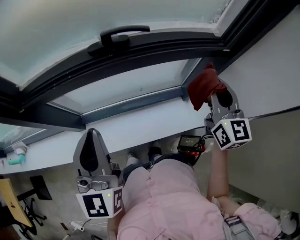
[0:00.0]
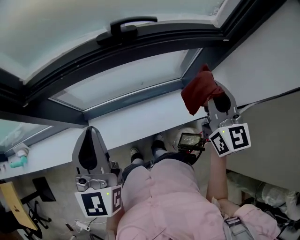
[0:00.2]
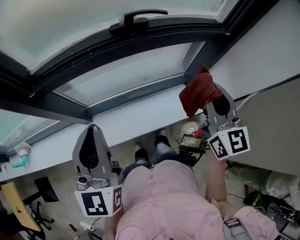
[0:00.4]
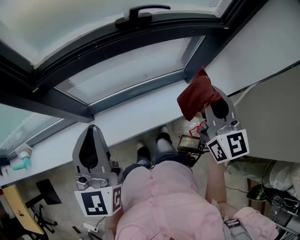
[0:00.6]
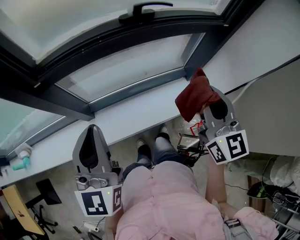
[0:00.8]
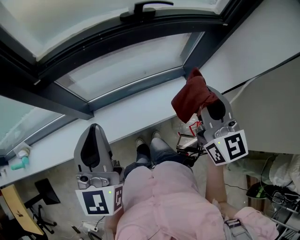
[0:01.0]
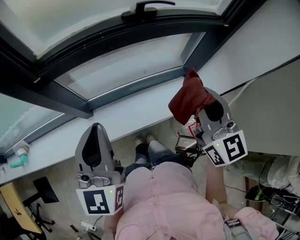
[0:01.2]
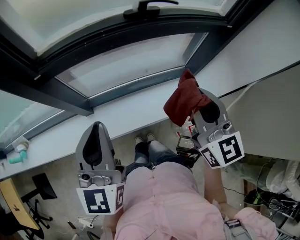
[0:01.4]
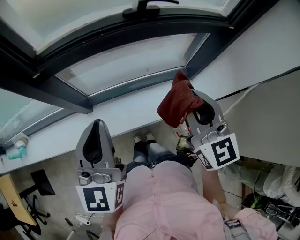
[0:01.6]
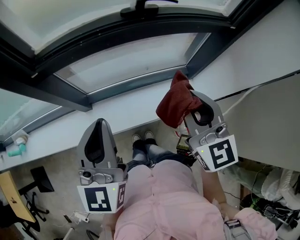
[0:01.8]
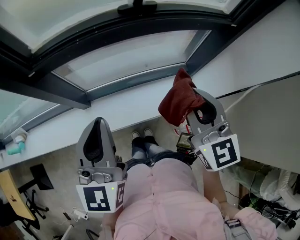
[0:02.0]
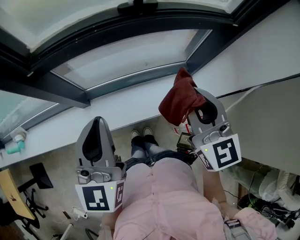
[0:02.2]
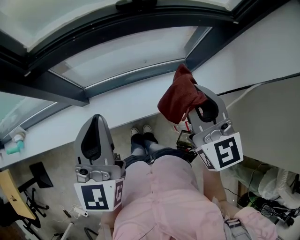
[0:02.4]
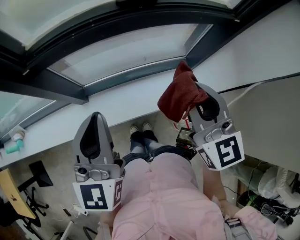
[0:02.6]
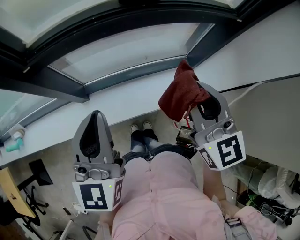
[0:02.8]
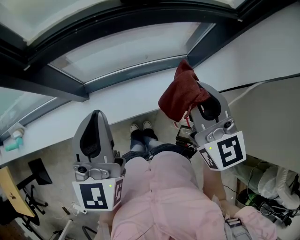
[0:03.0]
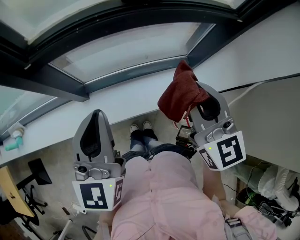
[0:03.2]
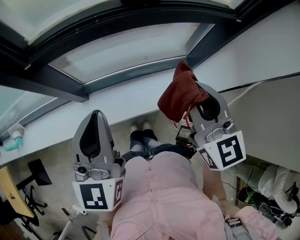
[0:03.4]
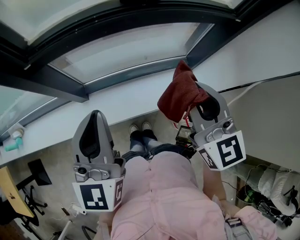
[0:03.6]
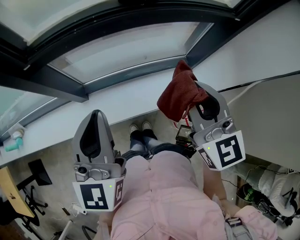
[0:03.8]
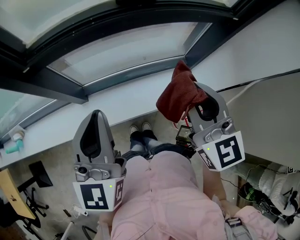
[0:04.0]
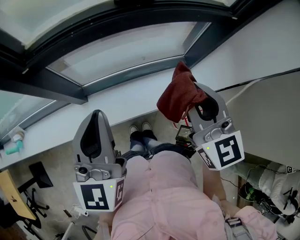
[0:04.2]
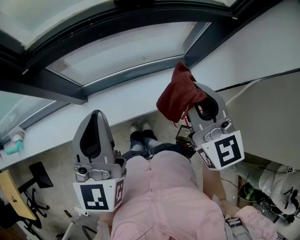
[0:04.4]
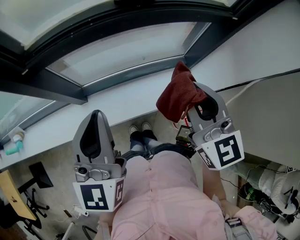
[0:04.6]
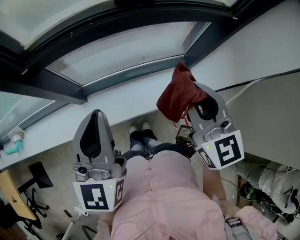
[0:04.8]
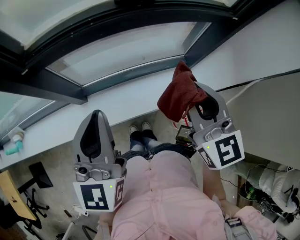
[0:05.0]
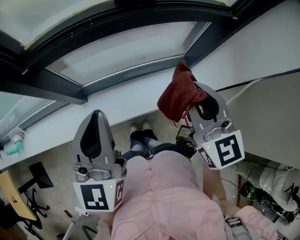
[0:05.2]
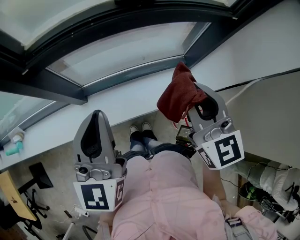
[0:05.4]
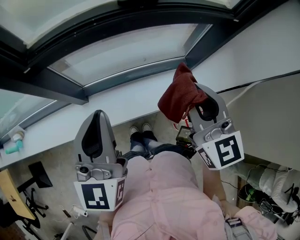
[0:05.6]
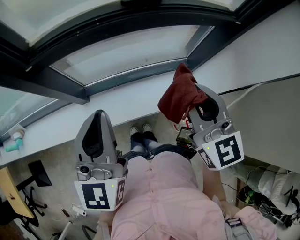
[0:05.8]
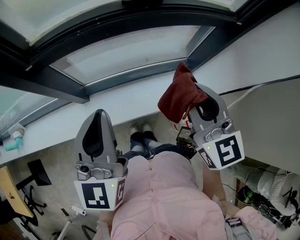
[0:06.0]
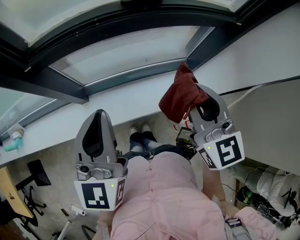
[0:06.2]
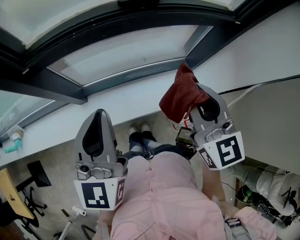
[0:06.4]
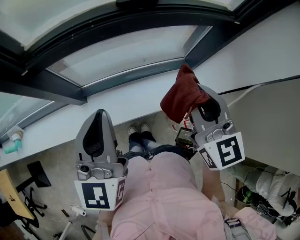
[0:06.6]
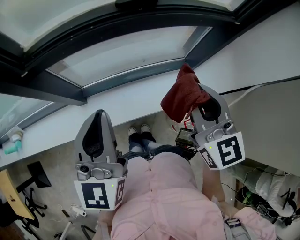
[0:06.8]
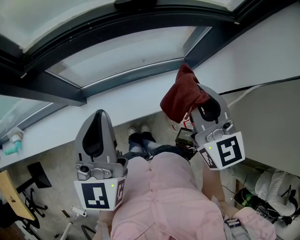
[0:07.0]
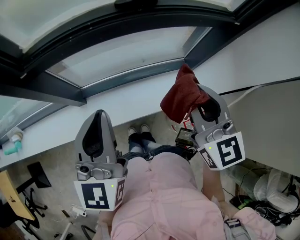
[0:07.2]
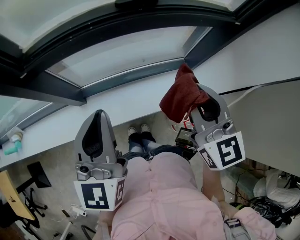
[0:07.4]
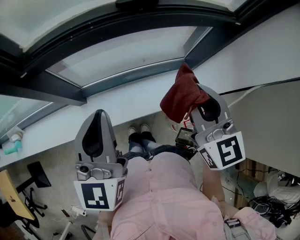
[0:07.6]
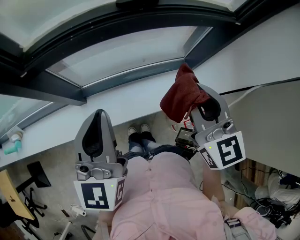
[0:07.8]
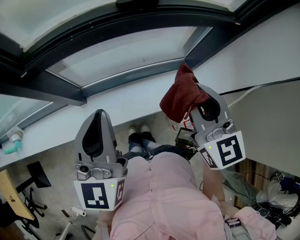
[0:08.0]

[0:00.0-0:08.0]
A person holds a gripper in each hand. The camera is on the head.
0:00.0 to 0:01.6: The left gripper is displaced to the left and backward by roughly 15 cm. Meanwhile the right gripper moves to the left and backward, approximately 30 cm.
0:01.6 to 0:03.2: The grippers move only a little.
0:03.2 to 0:04.8: The two grippers keep their place.
0:04.8 to 0:06.4: The two grippers keep their place.
0:06.4 to 0:08.0: Both grippers stay put.

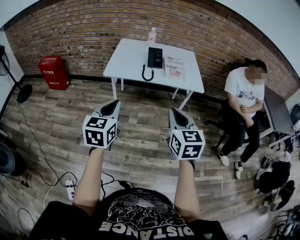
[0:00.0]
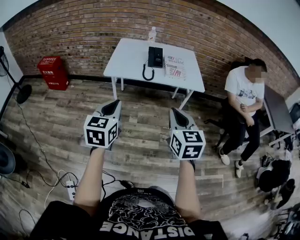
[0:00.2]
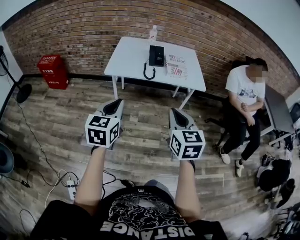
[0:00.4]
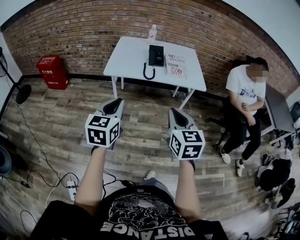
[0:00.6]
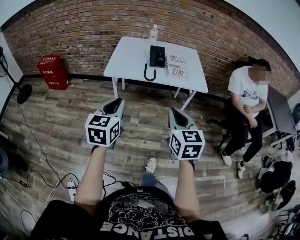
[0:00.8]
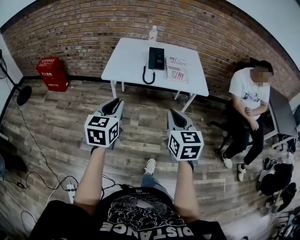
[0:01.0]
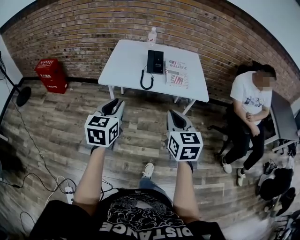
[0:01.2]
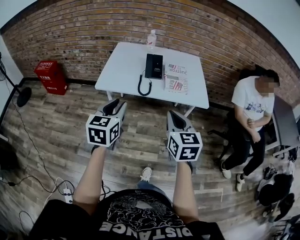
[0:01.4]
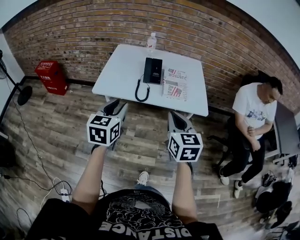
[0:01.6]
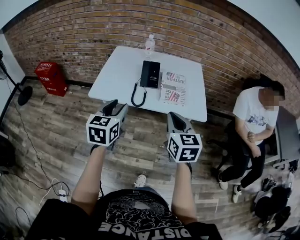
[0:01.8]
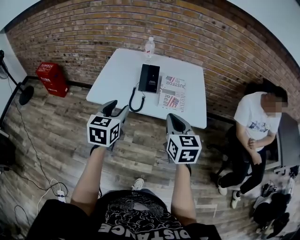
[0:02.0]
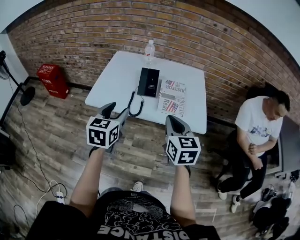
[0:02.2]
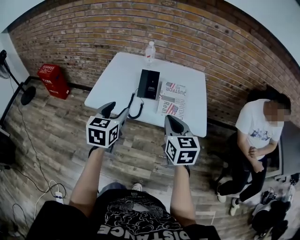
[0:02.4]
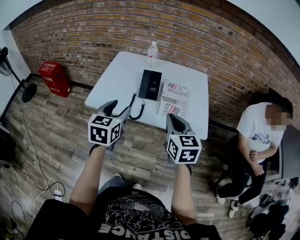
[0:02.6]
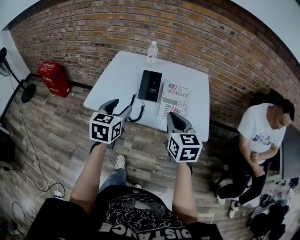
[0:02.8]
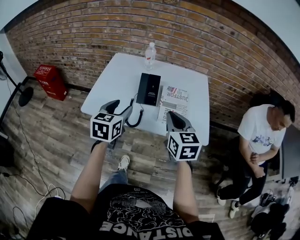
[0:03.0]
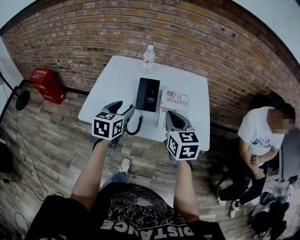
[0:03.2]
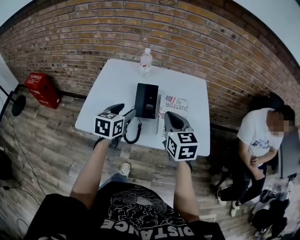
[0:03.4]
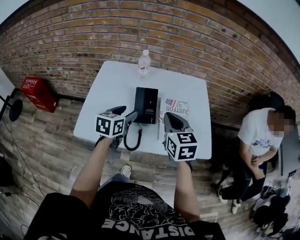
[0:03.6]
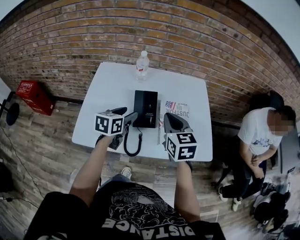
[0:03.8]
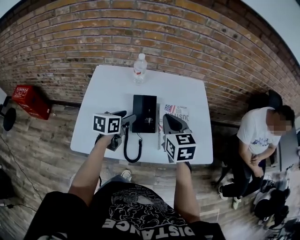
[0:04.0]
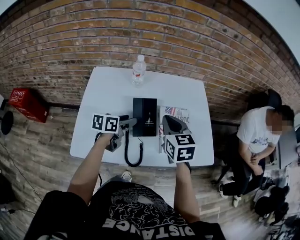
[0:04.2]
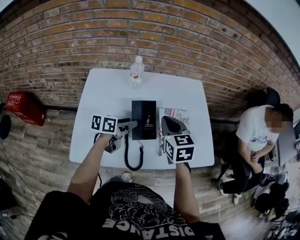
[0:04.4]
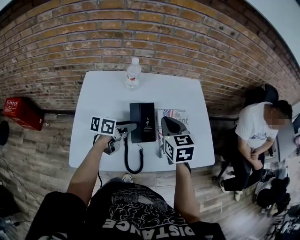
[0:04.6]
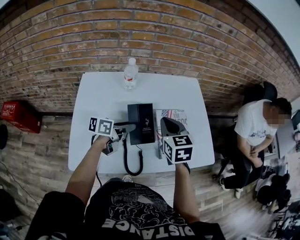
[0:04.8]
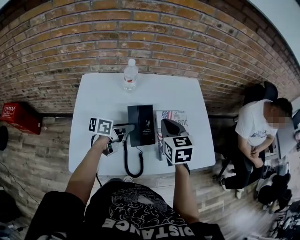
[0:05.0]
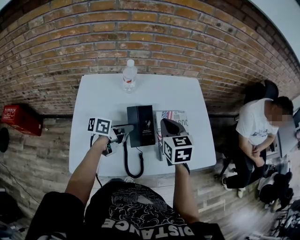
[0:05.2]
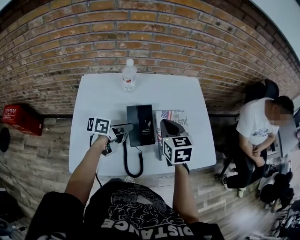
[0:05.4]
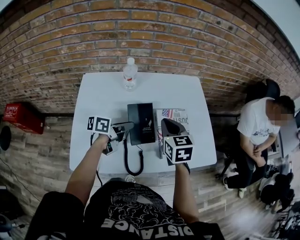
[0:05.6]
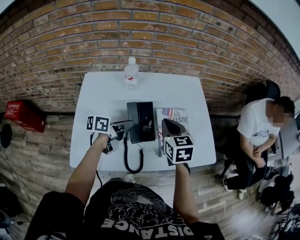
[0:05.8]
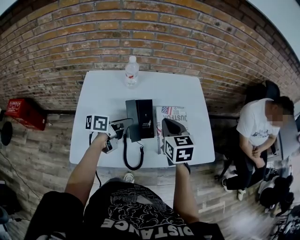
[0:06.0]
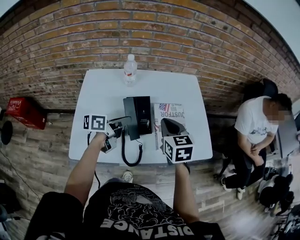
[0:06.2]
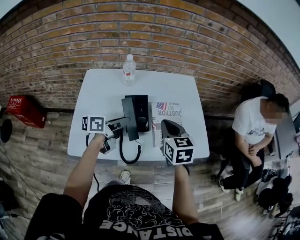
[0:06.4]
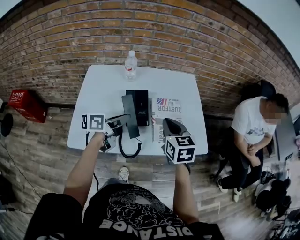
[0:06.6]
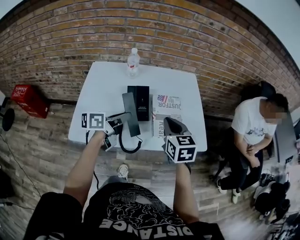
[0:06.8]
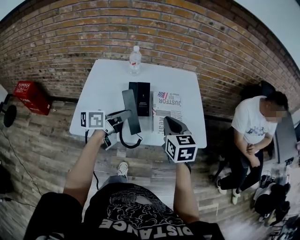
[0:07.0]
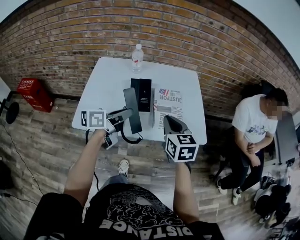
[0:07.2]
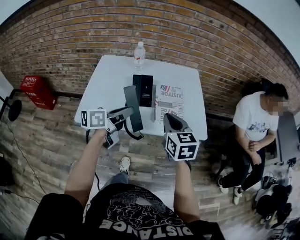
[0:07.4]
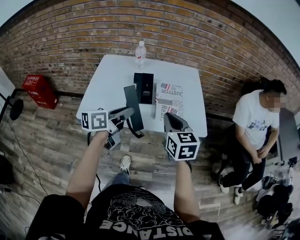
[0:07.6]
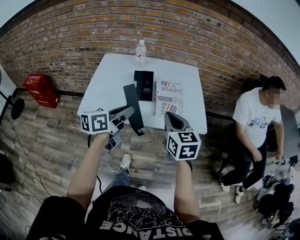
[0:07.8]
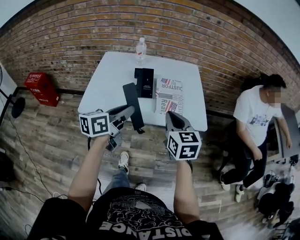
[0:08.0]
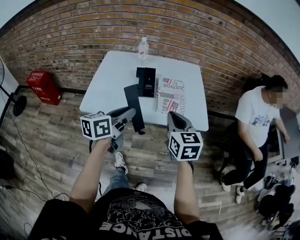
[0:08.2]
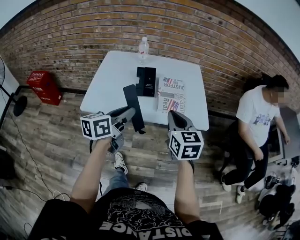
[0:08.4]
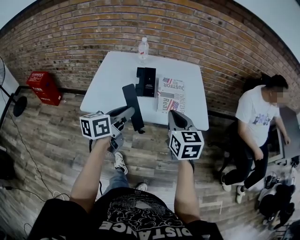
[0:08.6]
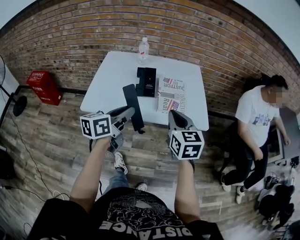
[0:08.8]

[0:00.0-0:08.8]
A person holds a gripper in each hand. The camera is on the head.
0:00.0 to 0:01.4: Both grippers move forward, about 15 cm.
0:01.4 to 0:03.0: The two grippers go about 25 cm forward. The left gripper opens up.
0:03.0 to 0:04.4: The left gripper shifts by some 25 cm, and changes its angle by roughly 50 degrees, while the right gripper changes place by approximately 20 cm.
0:04.4 to 0:05.8: The left gripper closes.
0:05.8 to 0:07.4: The right gripper moves backward and to the right, roughly 20 cm. The left gripper goes about 25 cm backward, upward and to the right, and turns by roughly 20 degrees.
0:07.4 to 0:08.8: The grippers both shift backward by about 5 cm.

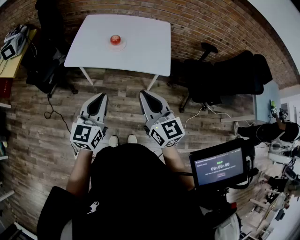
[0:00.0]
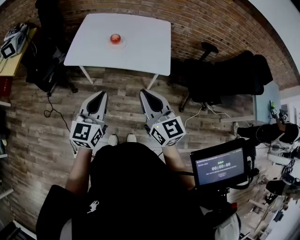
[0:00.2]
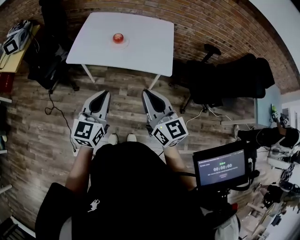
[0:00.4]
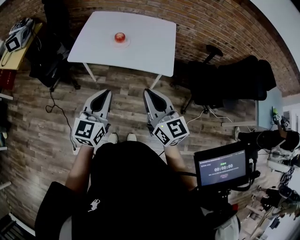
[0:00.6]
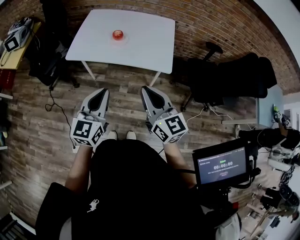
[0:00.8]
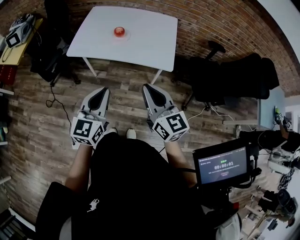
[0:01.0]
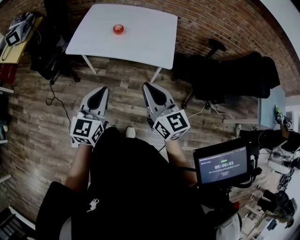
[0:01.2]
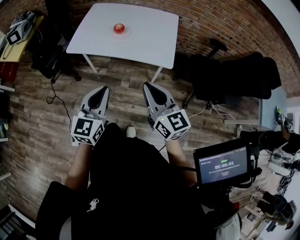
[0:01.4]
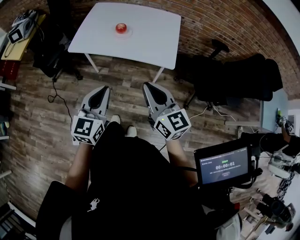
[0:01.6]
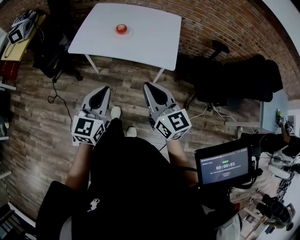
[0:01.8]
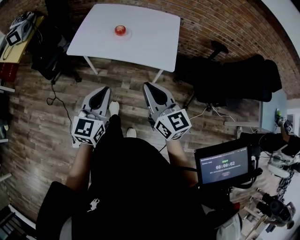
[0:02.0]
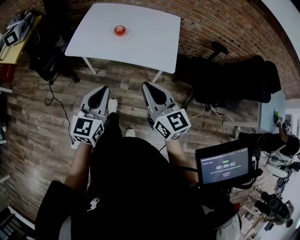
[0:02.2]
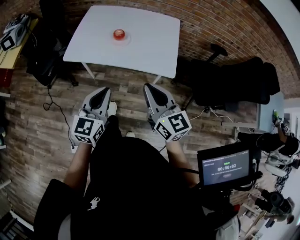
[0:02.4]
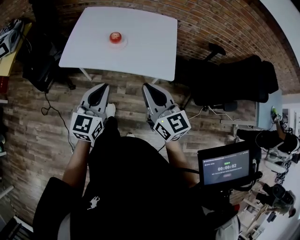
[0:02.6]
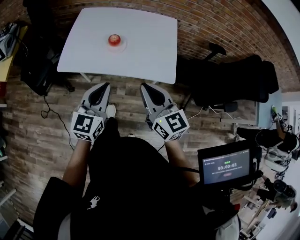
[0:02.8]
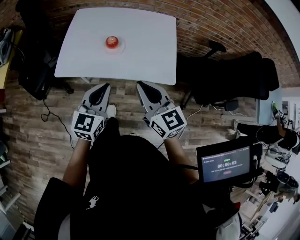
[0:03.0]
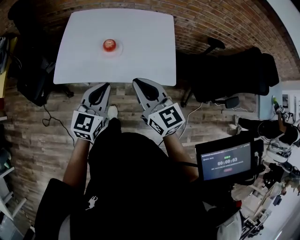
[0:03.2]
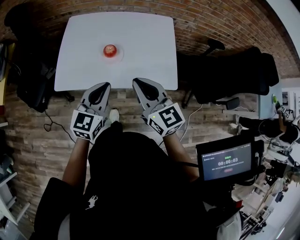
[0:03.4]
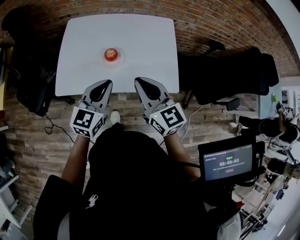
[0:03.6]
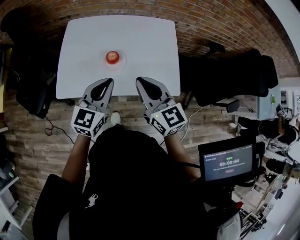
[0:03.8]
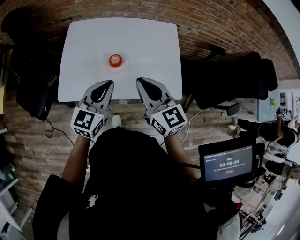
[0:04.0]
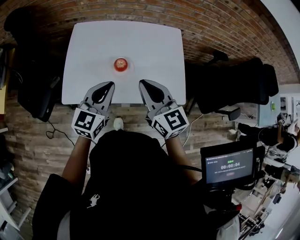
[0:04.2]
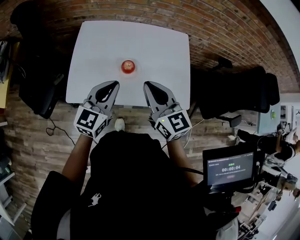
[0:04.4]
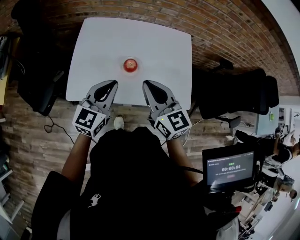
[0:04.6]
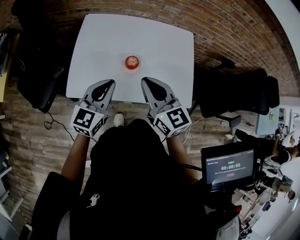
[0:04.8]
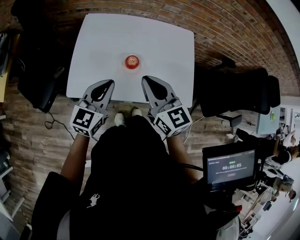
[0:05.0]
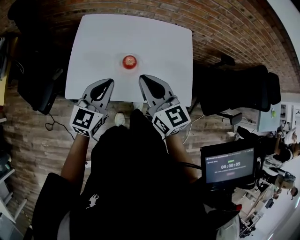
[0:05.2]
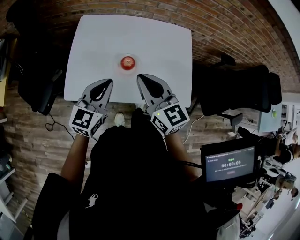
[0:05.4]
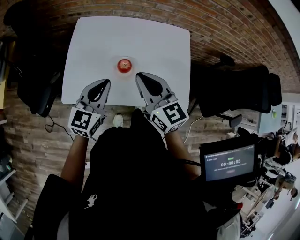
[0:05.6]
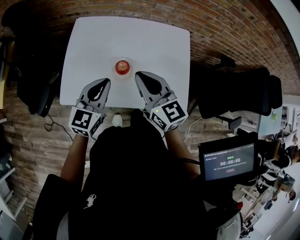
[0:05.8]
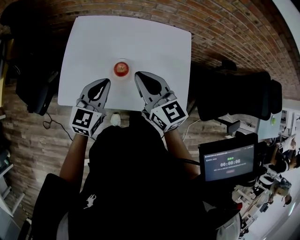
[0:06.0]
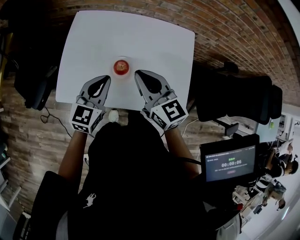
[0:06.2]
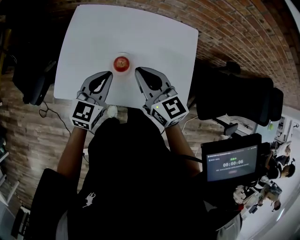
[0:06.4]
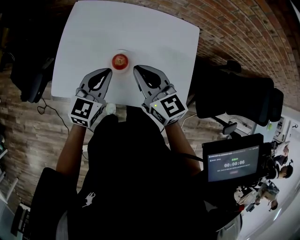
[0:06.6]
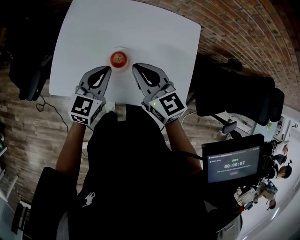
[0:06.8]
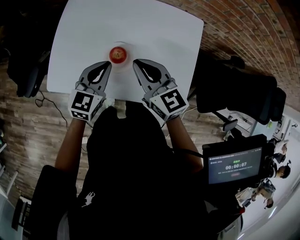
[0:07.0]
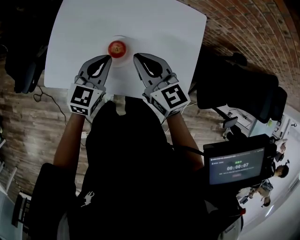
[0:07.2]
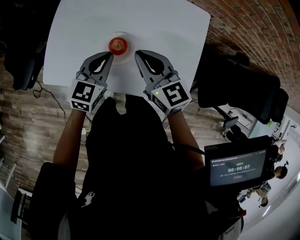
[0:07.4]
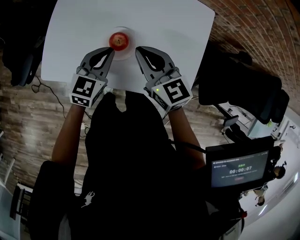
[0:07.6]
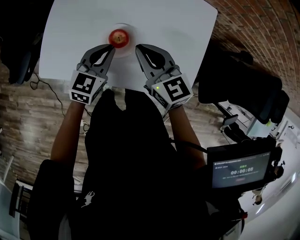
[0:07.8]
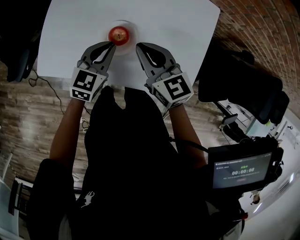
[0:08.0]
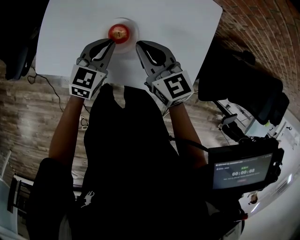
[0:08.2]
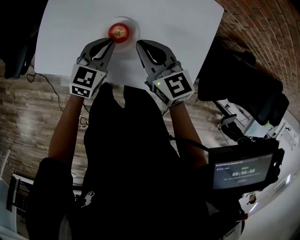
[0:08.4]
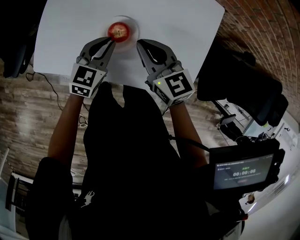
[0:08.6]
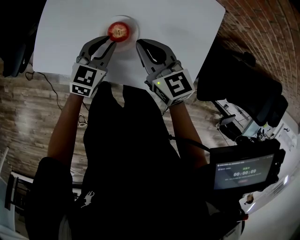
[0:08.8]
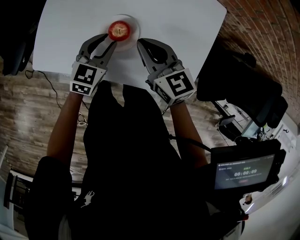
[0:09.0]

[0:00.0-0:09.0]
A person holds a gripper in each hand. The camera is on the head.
0:00.0 to 0:01.6: The grippers move only a little.
0:01.6 to 0:03.0: The two grippers go approximately 20 cm forward.
0:03.0 to 0:04.4: Both grippers travel together forward and to the left, approximately 15 cm.
0:04.4 to 0:06.0: Both grippers move forward, approximately 5 cm.
0:06.0 to 0:07.6: The two grippers go roughly 10 cm downward.
0:07.6 to 0:09.0: The grippers both shift downward by about 5 cm.
